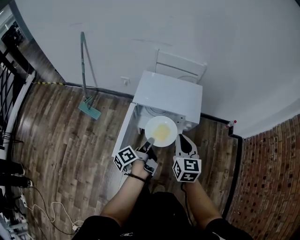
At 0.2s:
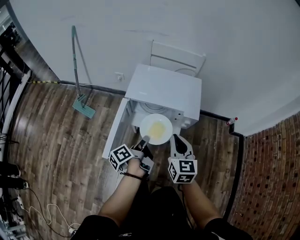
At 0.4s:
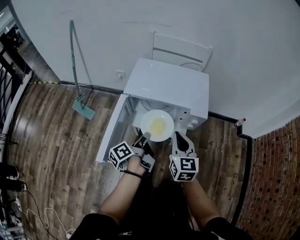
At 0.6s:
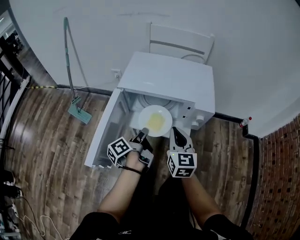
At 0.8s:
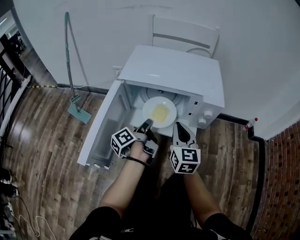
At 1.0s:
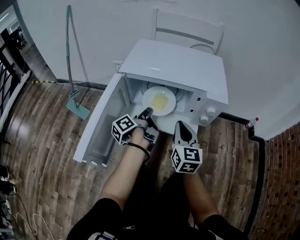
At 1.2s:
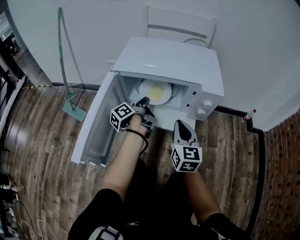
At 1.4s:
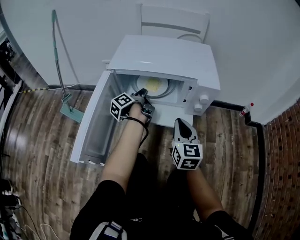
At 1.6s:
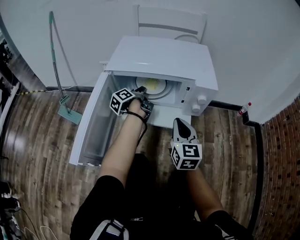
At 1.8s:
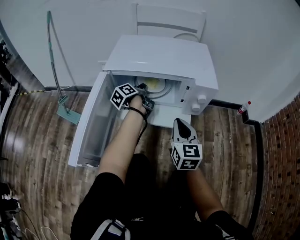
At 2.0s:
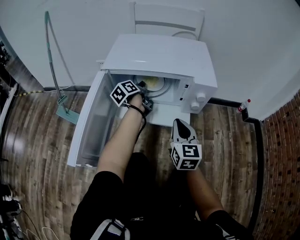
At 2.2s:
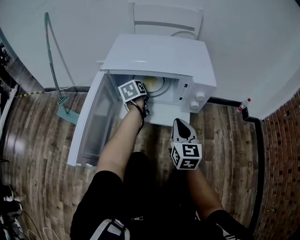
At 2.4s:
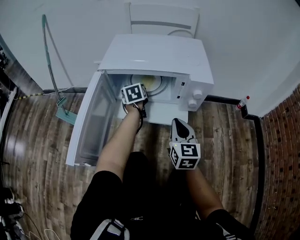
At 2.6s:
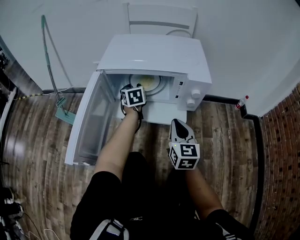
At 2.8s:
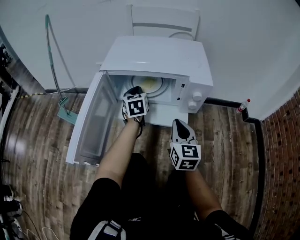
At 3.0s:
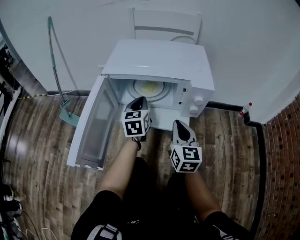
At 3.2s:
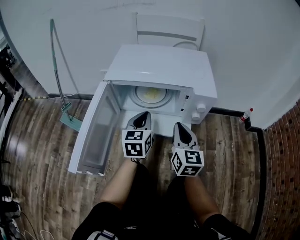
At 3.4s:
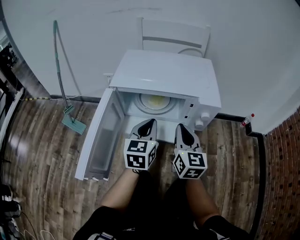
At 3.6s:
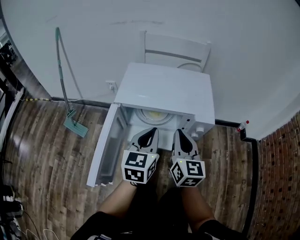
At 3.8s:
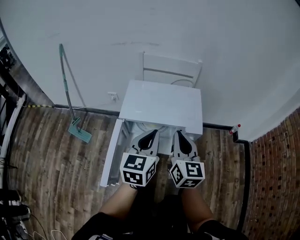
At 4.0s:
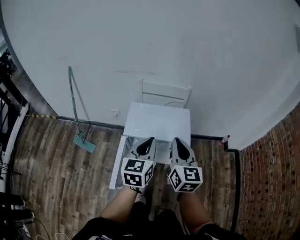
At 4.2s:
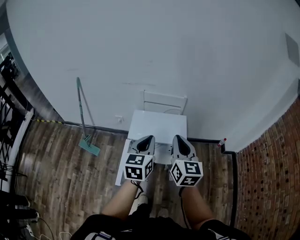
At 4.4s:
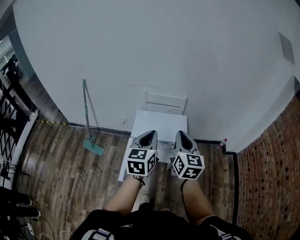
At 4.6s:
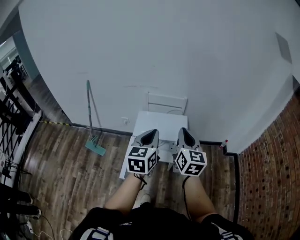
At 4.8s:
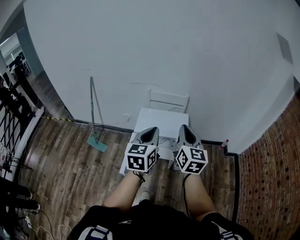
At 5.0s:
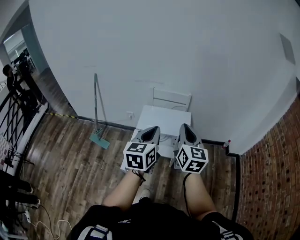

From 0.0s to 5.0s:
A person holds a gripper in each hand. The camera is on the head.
From 0.0s to 1.6s: The left gripper travels downward and forward by some 40 cm. The right gripper travels downward by about 30 cm.
From 1.6s to 3.4s: The left gripper travels backward and upward by some 20 cm, rotates around the line of its fingers by roughly 70 degrees, clockwise from behind, and opens, then closes again, while the right gripper changes place by roughly 5 cm.
From 3.4s to 5.0s: The grippers both shift upward by some 50 cm.

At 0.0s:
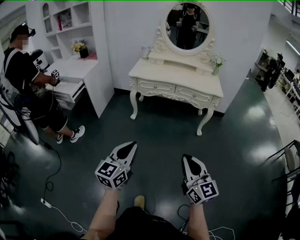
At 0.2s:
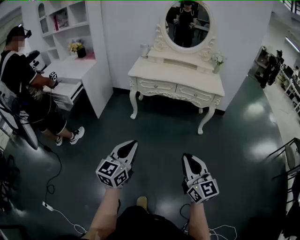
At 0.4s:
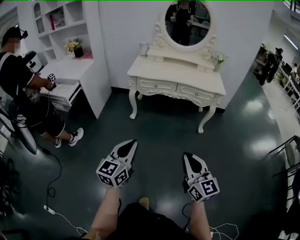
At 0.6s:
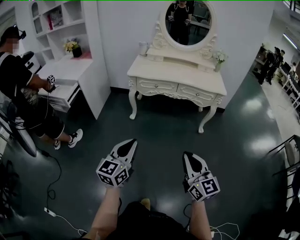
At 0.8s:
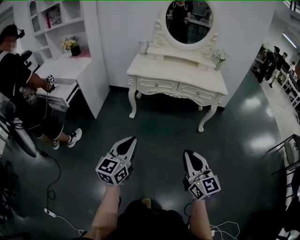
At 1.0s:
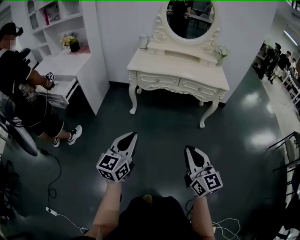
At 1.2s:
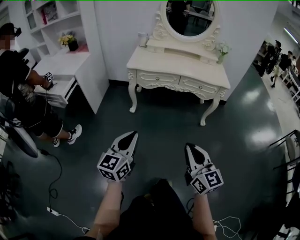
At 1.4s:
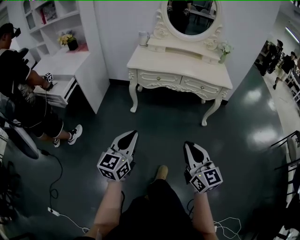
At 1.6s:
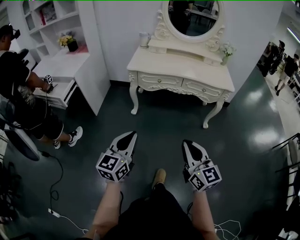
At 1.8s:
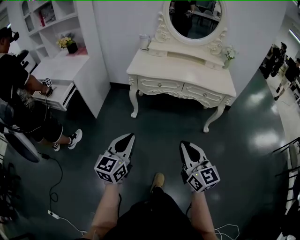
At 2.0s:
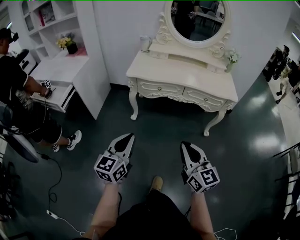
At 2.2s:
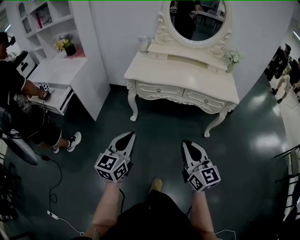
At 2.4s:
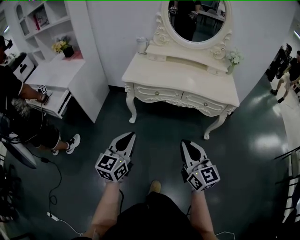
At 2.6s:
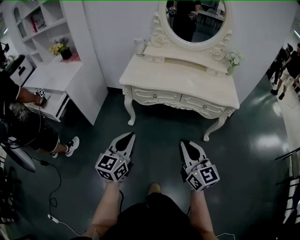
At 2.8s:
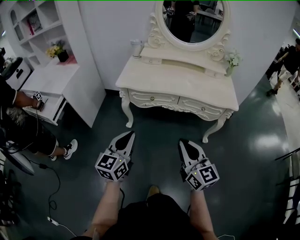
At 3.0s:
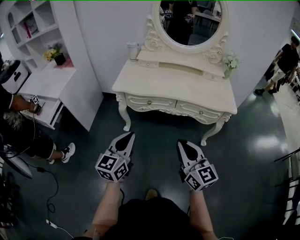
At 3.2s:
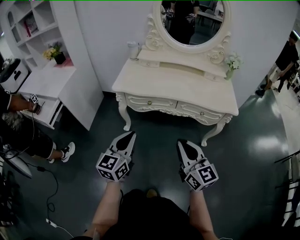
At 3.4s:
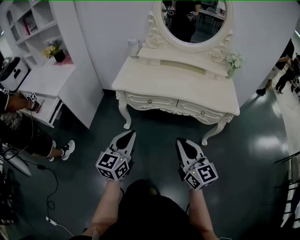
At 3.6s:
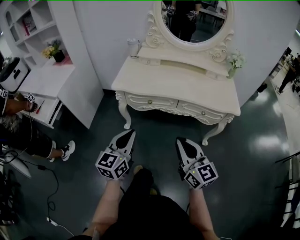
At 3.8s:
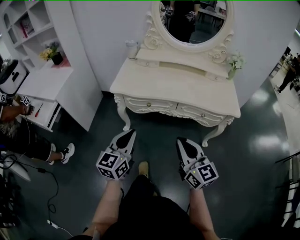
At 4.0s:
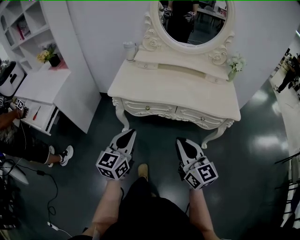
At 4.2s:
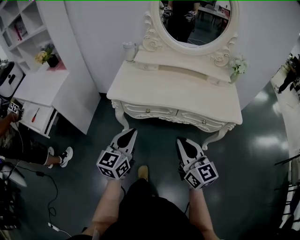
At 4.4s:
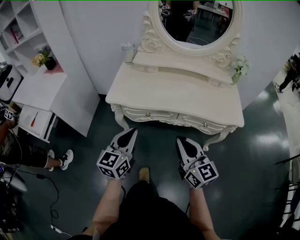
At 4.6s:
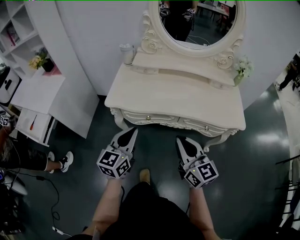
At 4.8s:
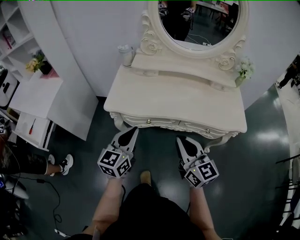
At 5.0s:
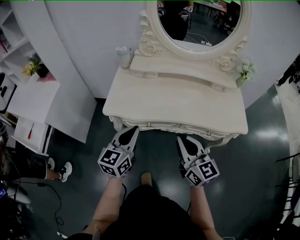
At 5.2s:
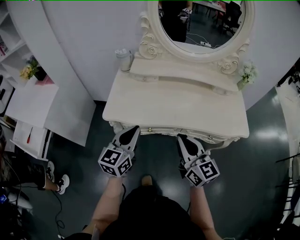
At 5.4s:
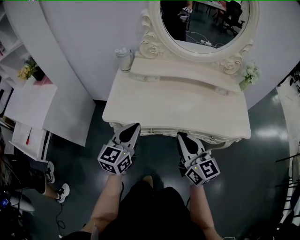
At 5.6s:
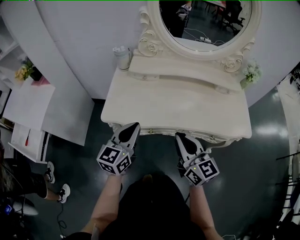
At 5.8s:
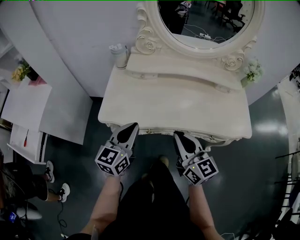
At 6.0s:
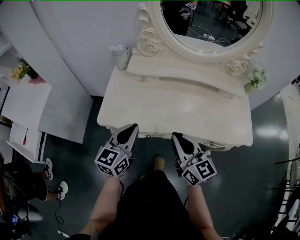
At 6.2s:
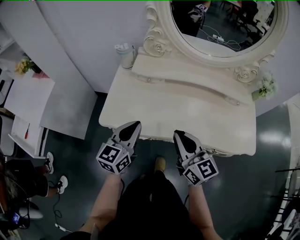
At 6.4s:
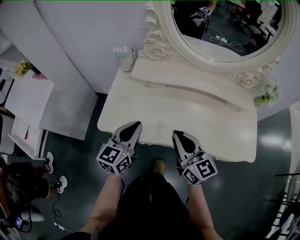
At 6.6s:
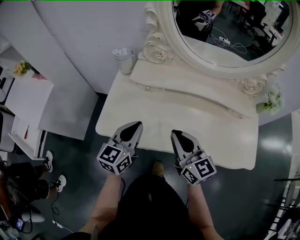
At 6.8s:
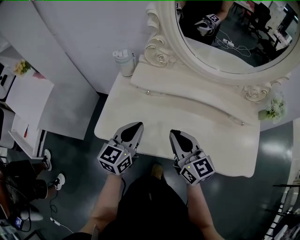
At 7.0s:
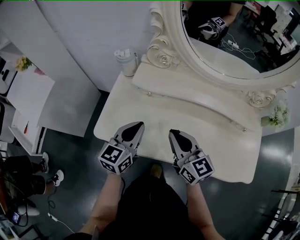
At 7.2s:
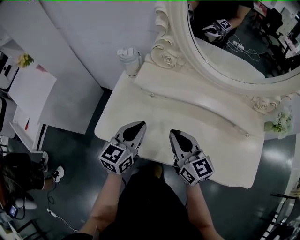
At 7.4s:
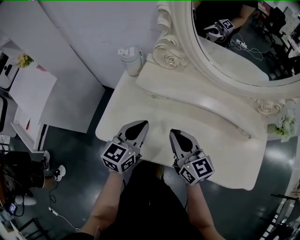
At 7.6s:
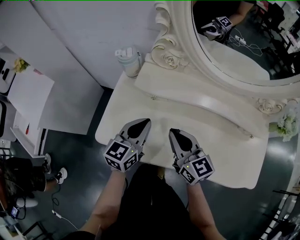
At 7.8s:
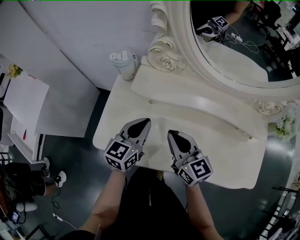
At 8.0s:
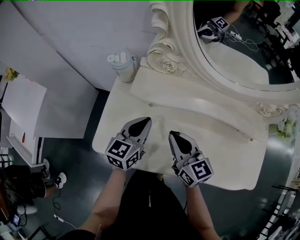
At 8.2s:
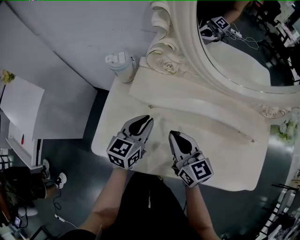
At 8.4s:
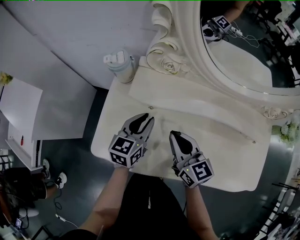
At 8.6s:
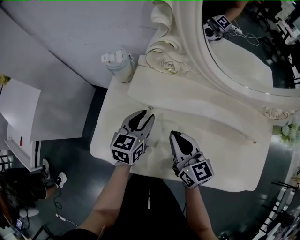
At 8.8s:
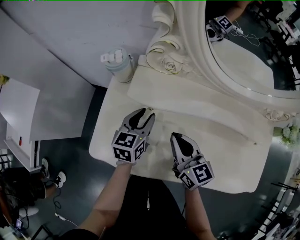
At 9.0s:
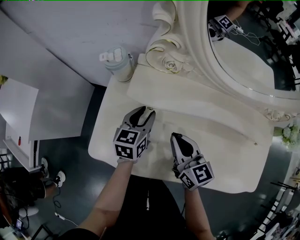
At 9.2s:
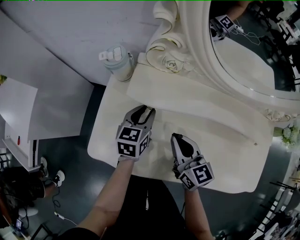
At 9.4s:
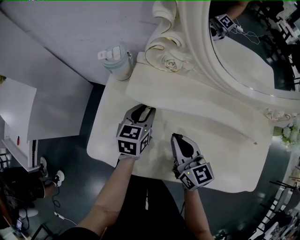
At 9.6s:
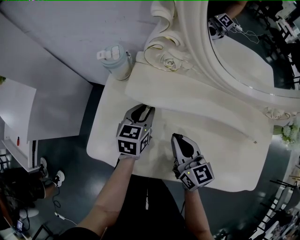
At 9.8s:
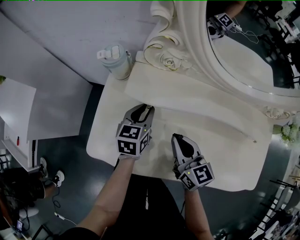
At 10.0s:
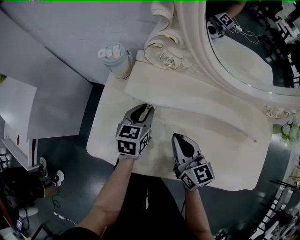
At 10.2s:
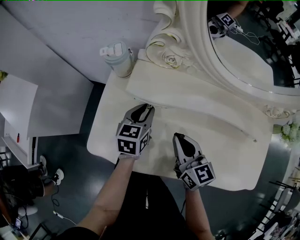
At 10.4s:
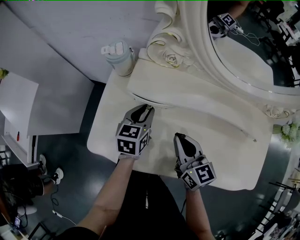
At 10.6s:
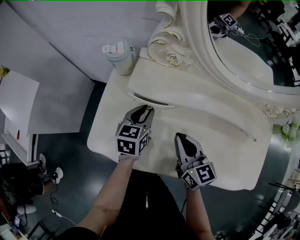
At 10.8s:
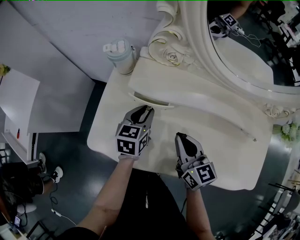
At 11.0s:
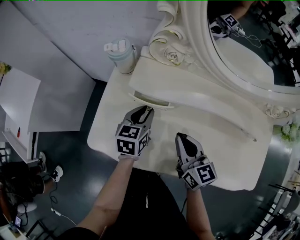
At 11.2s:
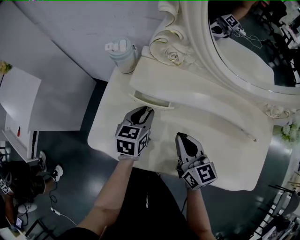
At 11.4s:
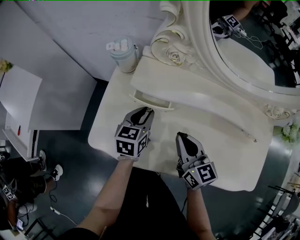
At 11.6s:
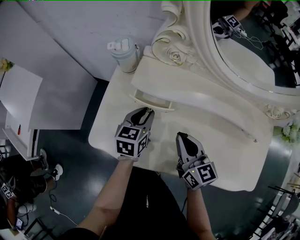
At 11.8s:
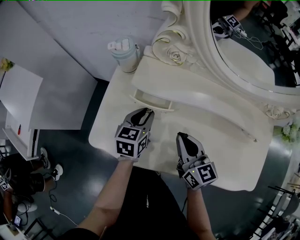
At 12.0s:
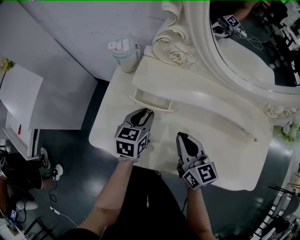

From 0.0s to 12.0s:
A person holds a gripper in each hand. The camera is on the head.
From 0.0s to 1.6s: Both grippers move forward and to the left, about 20 cm.
From 1.6s to 3.0s: The two grippers go roughly 25 cm forward.
From 3.0s to 4.4s: Both grippers travel together forward, roughly 15 cm.
From 4.4s to 6.0s: Both grippers travel together forward, roughly 20 cm.
From 6.0s to 7.6s: The grippers both shift forward by about 20 cm.
From 7.6s to 9.0s: The right gripper goes approximately 10 cm downward and forward, while the left gripper heads forward and downward, covering roughly 15 cm, and opens.
From 9.0s to 12.0s: The grippers move only a little.

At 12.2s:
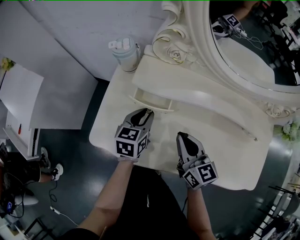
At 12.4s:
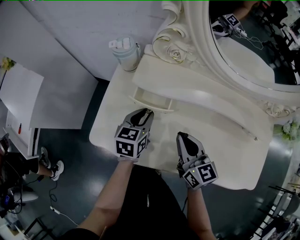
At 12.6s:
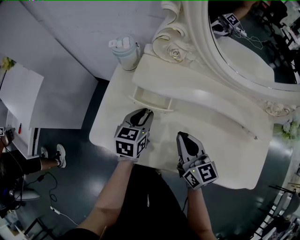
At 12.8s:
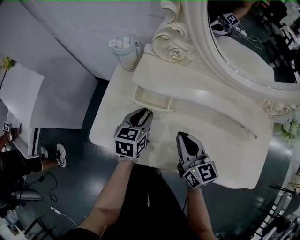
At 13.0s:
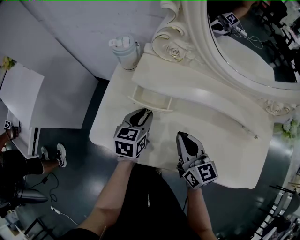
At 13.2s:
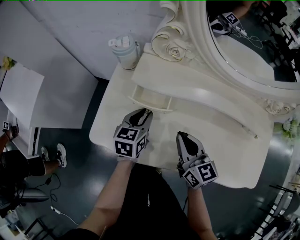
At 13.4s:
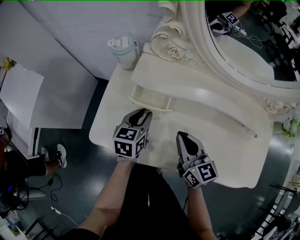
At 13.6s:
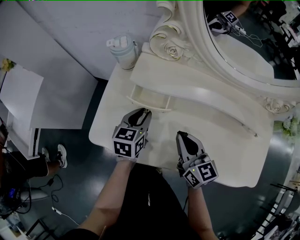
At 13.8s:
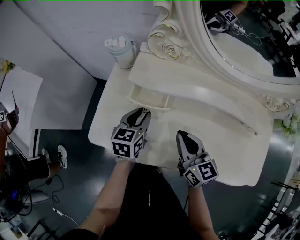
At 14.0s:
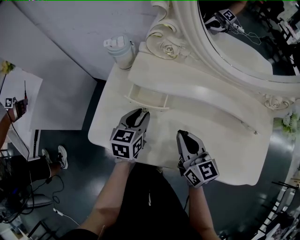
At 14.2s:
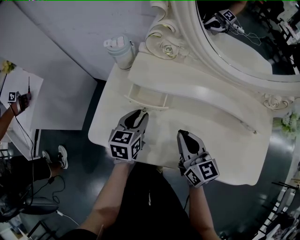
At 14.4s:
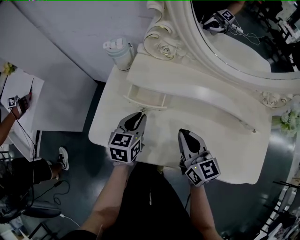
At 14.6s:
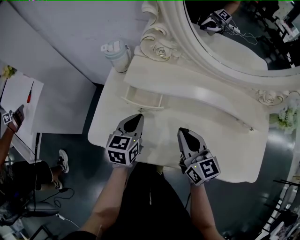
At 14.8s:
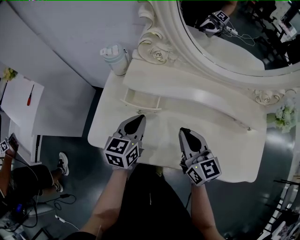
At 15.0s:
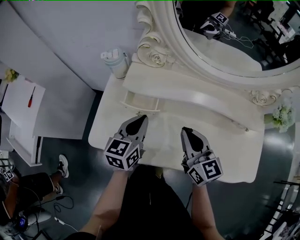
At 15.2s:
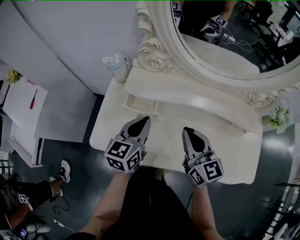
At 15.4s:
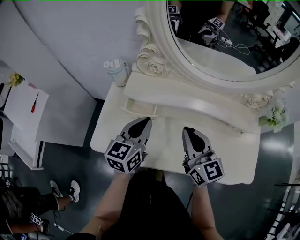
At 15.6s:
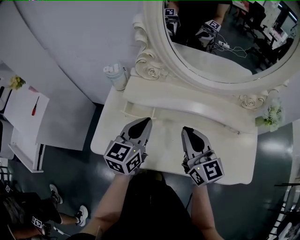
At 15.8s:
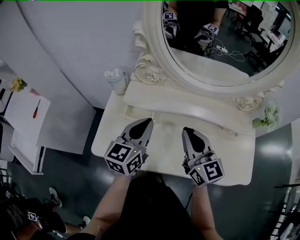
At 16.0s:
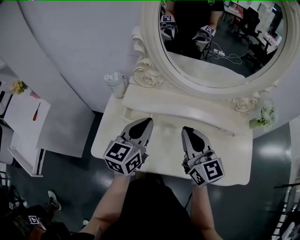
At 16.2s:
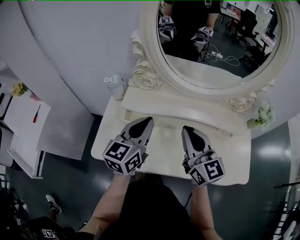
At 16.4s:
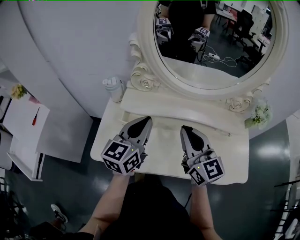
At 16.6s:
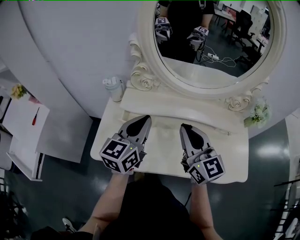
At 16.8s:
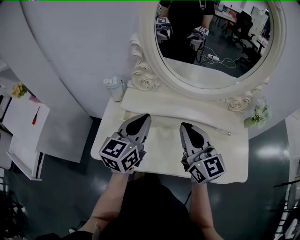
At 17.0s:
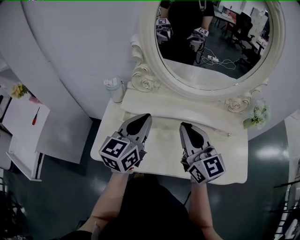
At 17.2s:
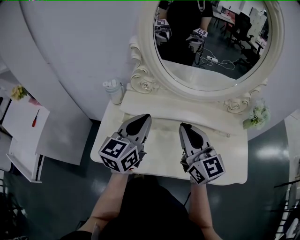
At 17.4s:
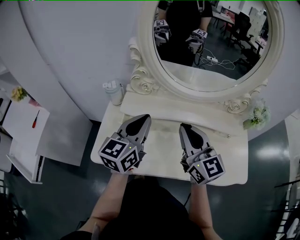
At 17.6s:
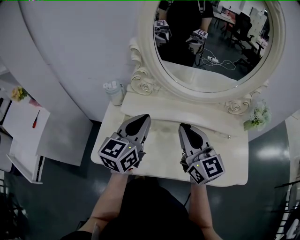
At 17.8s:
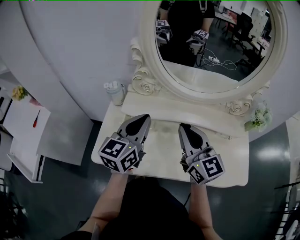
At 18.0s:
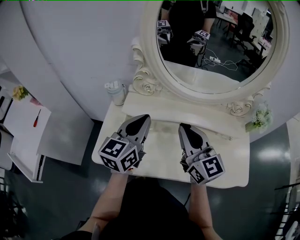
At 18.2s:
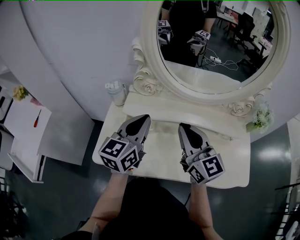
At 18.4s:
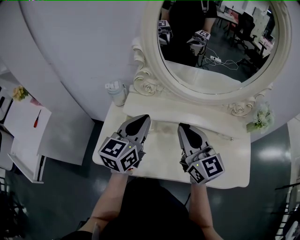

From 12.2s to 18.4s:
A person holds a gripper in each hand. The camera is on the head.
From 12.2s to 13.8s: Both grippers stay about where they are.
From 13.8s to 15.4s: The left gripper goes about 15 cm upward, rotates roughly 20 degrees, and closes. The right gripper moves upward and to the right, about 15 cm.
From 15.4s to 16.8s: The grippers both shift upward by some 10 cm.
From 16.8s to 18.4s: The grippers stay close to where they were, moving slightly.

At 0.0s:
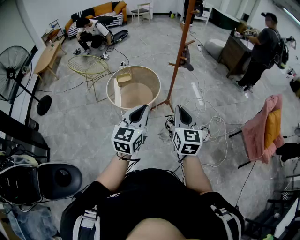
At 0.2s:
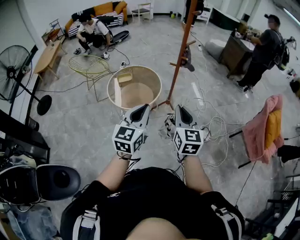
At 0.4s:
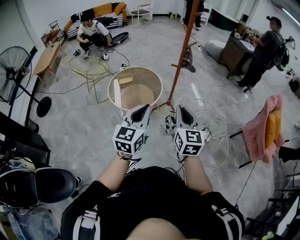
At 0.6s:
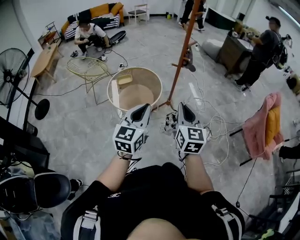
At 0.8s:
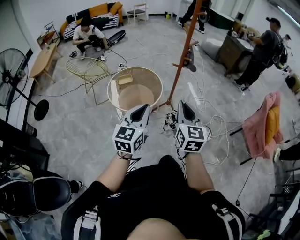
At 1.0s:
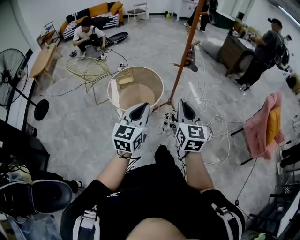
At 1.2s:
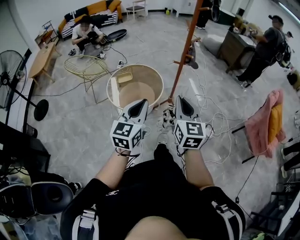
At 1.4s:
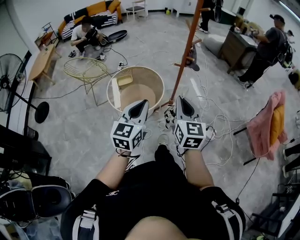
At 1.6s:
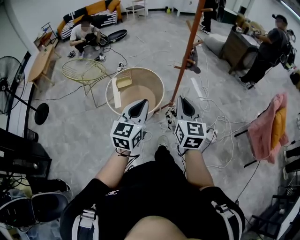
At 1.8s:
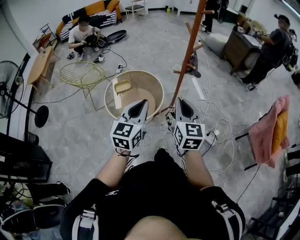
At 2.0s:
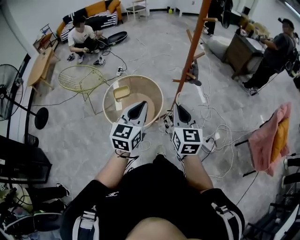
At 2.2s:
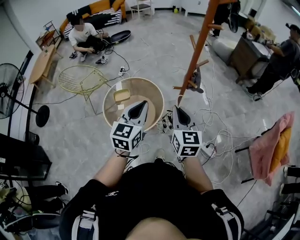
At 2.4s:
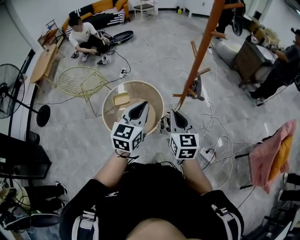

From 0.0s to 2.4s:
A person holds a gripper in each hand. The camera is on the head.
From 0.0s to 1.2s: The grippers both shift to the left and forward by about 10 cm.
From 1.2s to 2.4s: Both grippers travel together forward, about 35 cm.
